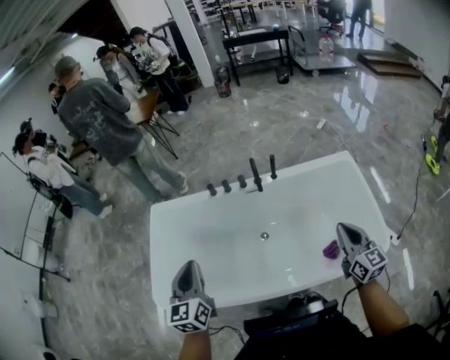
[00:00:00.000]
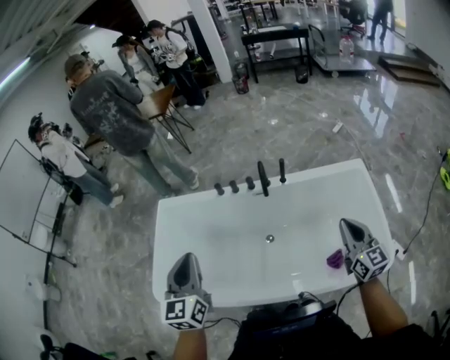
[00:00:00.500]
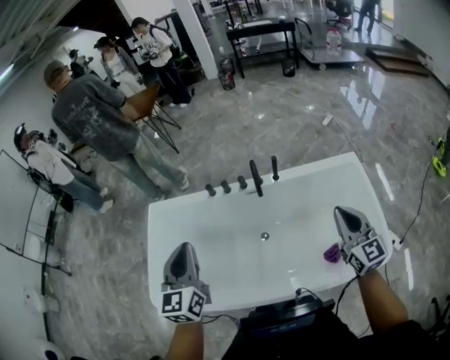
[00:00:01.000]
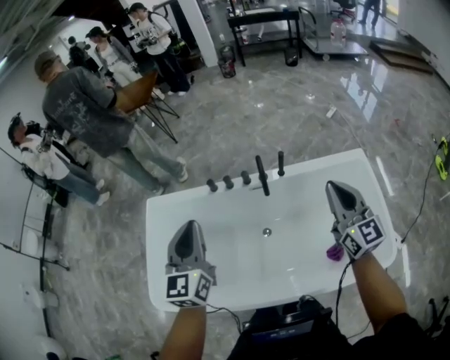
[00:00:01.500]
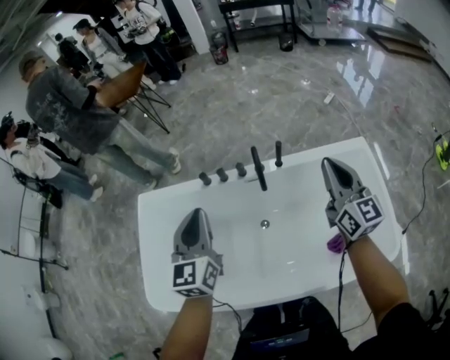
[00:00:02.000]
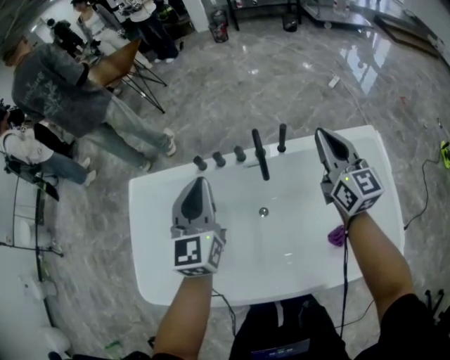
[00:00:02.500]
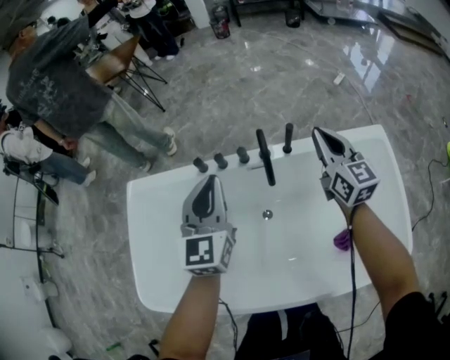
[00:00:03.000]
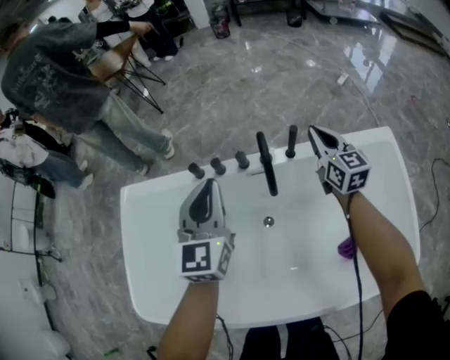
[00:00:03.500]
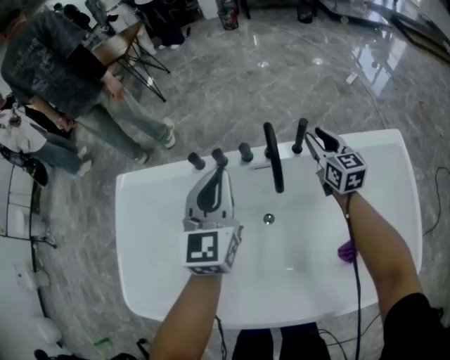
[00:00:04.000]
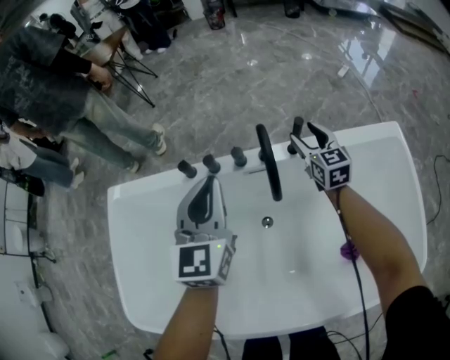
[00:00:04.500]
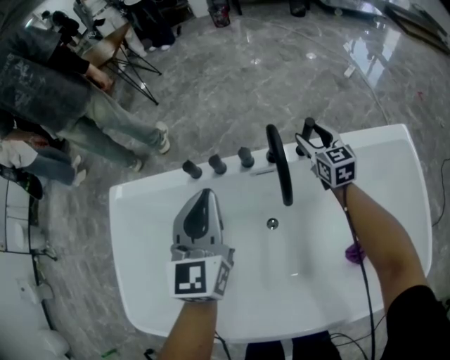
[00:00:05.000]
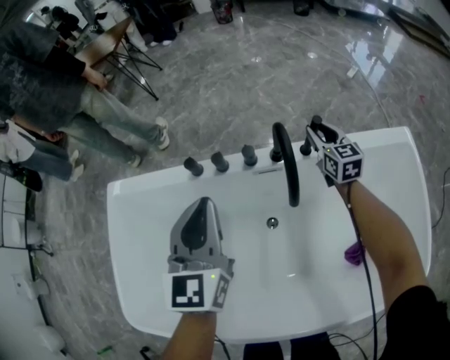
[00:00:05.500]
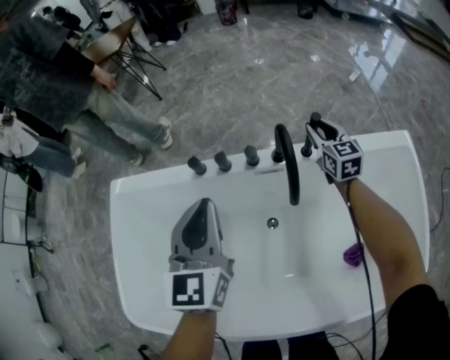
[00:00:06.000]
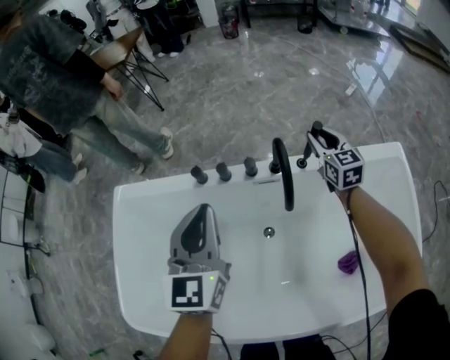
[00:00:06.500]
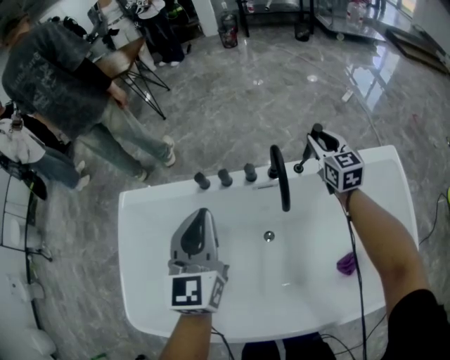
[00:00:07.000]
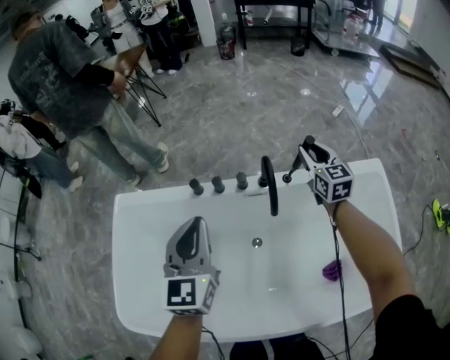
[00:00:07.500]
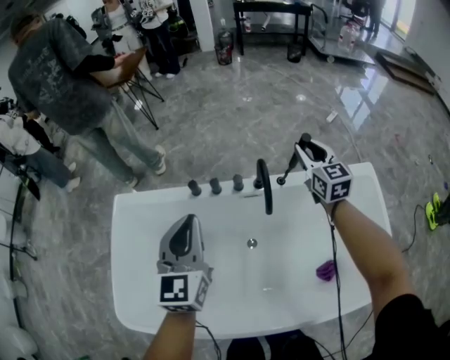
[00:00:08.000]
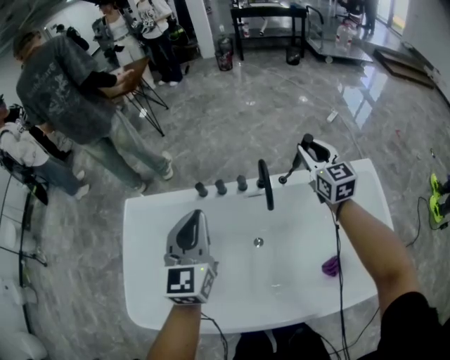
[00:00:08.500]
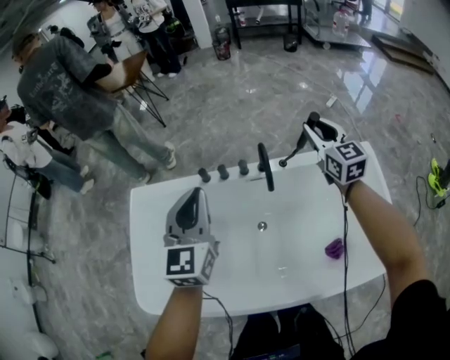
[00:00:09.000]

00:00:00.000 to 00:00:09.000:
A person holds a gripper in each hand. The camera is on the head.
00:00:00.000 to 00:00:02.000: The left gripper goes about 25 cm forward and to the right; the right gripper shifts roughly 25 cm forward.
00:00:02.000 to 00:00:04.500: The right gripper shifts approximately 40 cm downward and forward, rotates about 20 degrees, and opens, while the left gripper is displaced downward and forward by about 25 cm.
00:00:04.500 to 00:00:07.000: The left gripper shifts approximately 10 cm to the left, upward and backward; the right gripper is displaced upward by about 10 cm, and closes its fingers.
00:00:07.000 to 00:00:09.000: The right gripper heads upward and backward, covering approximately 25 cm. The left gripper moves upward and backward, roughly 15 cm.

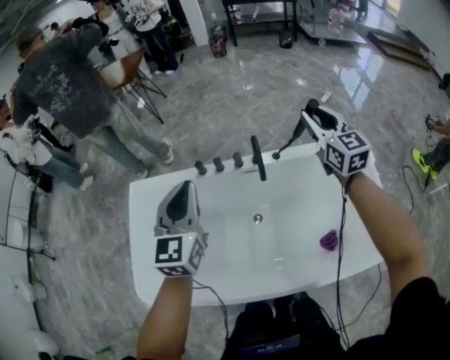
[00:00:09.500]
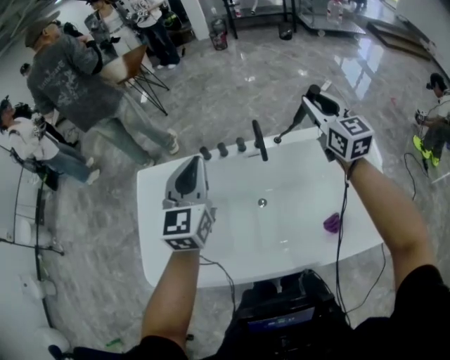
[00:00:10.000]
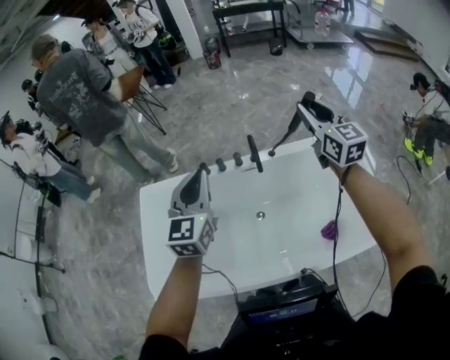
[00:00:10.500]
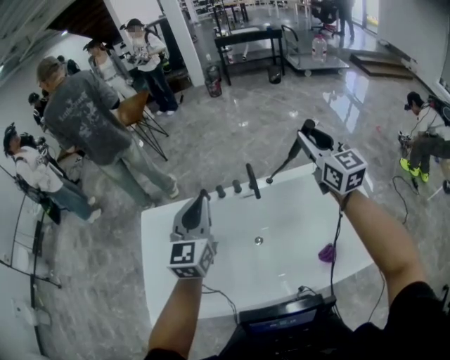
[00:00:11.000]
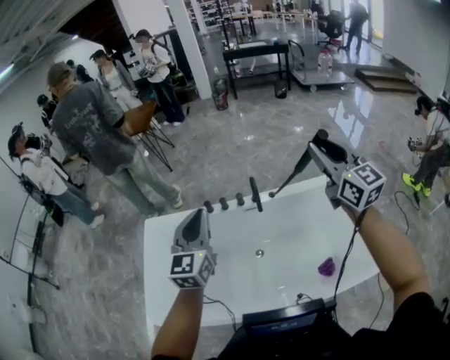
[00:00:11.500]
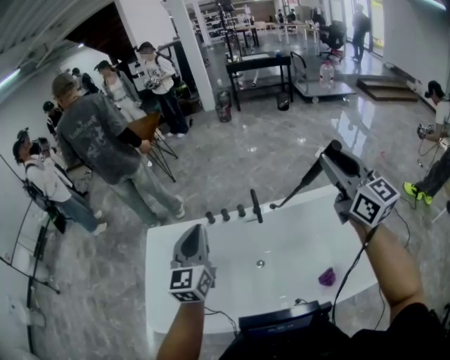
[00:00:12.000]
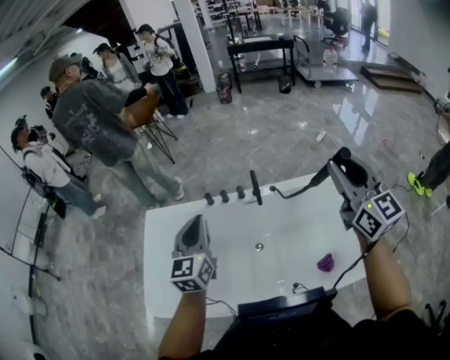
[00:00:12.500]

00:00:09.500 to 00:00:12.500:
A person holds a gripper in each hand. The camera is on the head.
00:00:09.500 to 00:00:11.000: The right gripper travels upward and backward by about 15 cm. Meanwhile the left gripper travels upward and backward by some 10 cm.
00:00:11.000 to 00:00:12.500: The right gripper shifts approximately 15 cm backward and upward; the left gripper ends up approximately 5 cm from where it was.

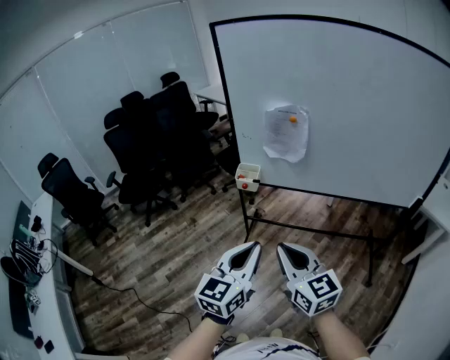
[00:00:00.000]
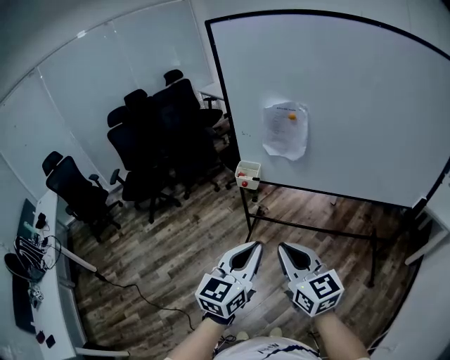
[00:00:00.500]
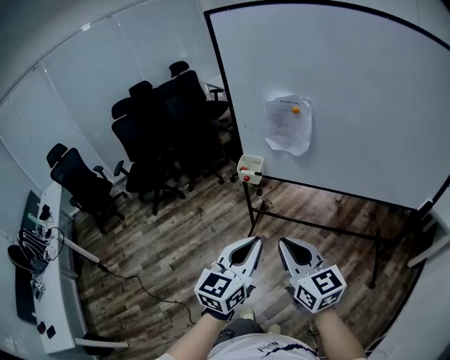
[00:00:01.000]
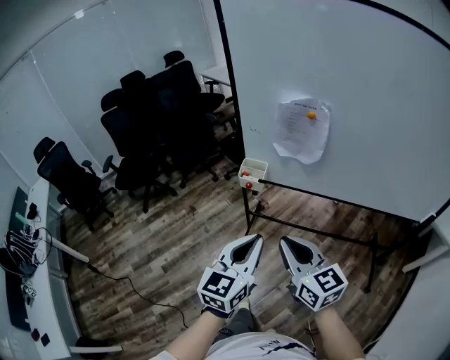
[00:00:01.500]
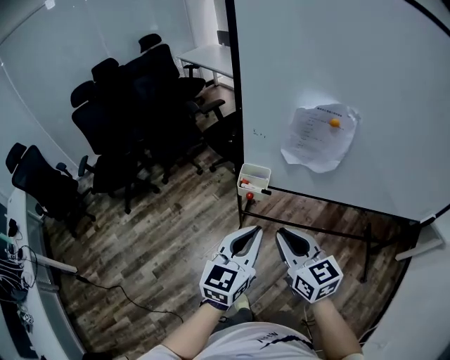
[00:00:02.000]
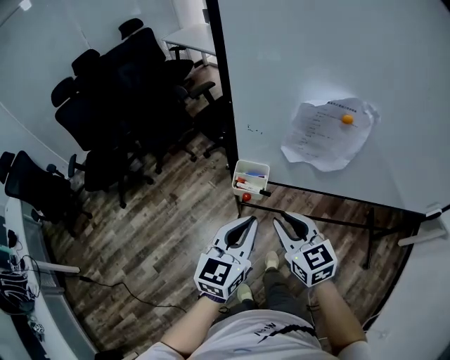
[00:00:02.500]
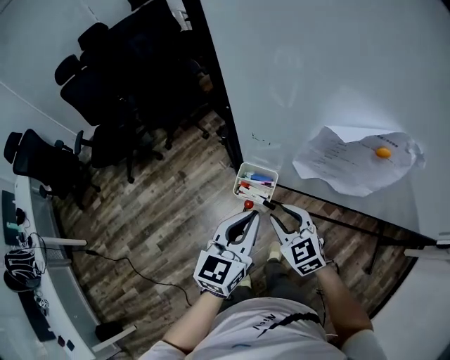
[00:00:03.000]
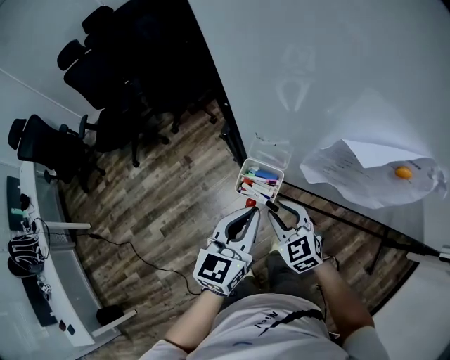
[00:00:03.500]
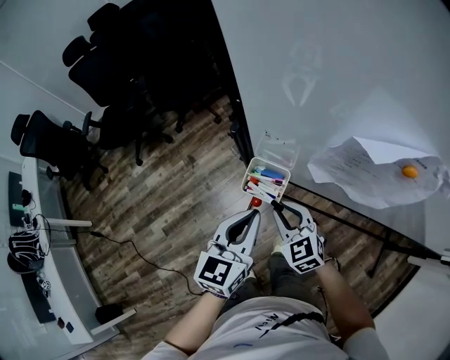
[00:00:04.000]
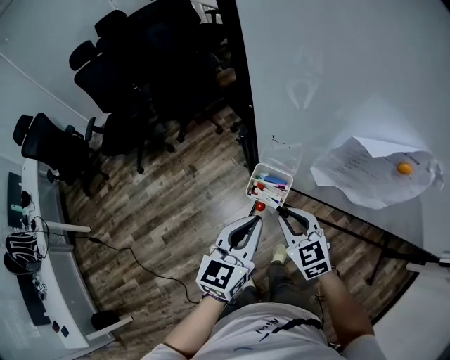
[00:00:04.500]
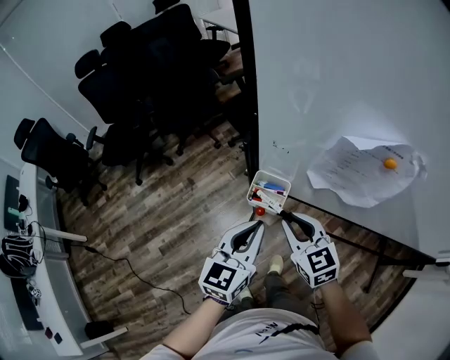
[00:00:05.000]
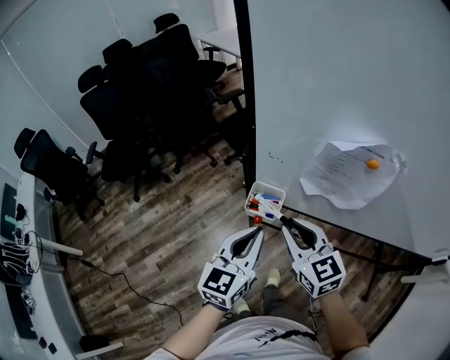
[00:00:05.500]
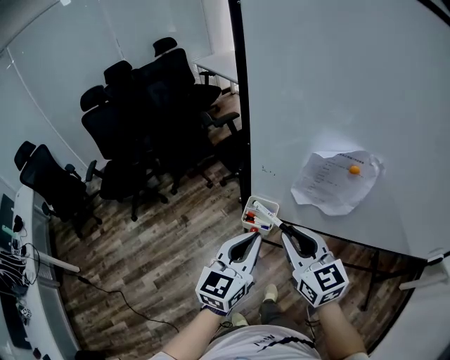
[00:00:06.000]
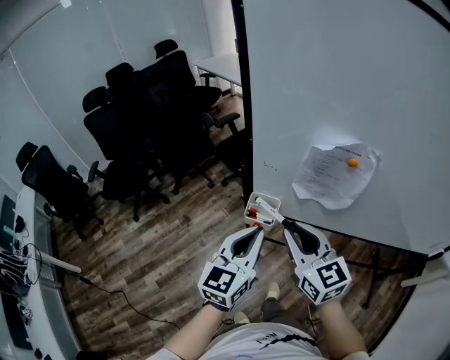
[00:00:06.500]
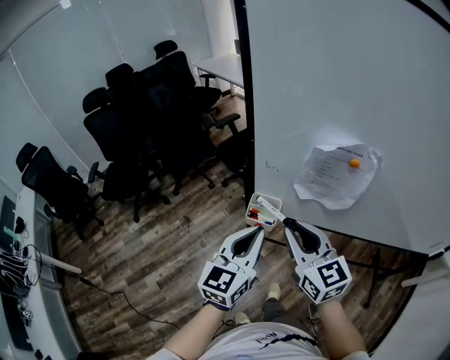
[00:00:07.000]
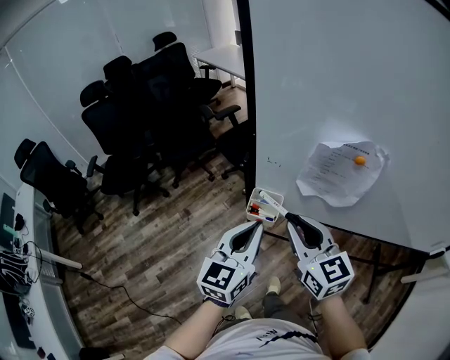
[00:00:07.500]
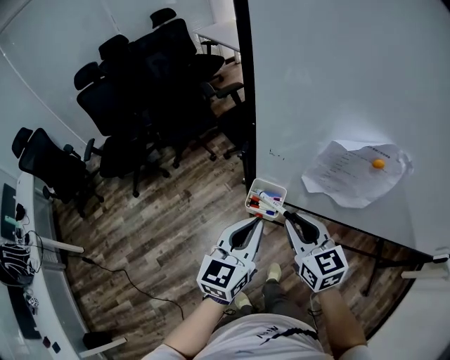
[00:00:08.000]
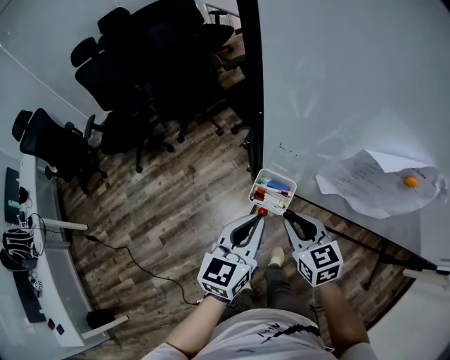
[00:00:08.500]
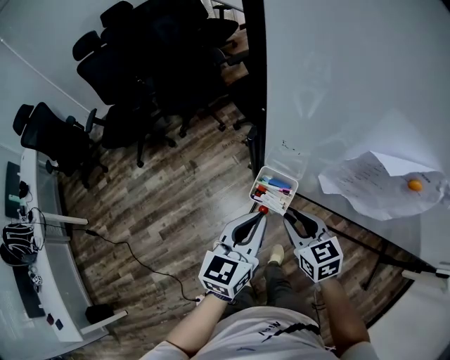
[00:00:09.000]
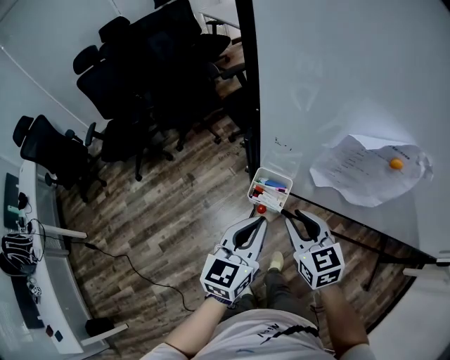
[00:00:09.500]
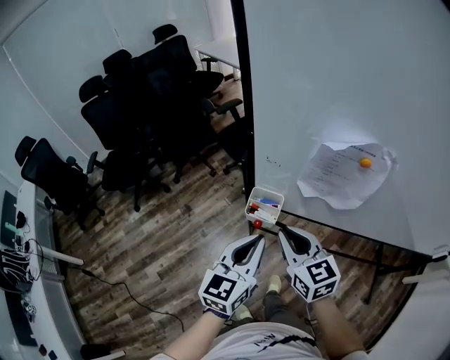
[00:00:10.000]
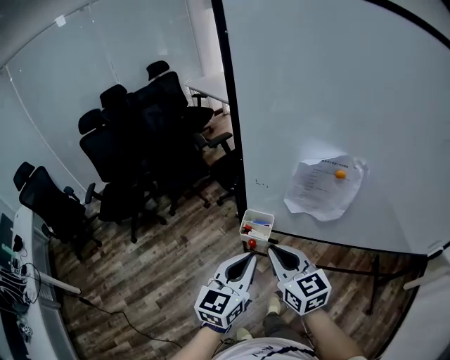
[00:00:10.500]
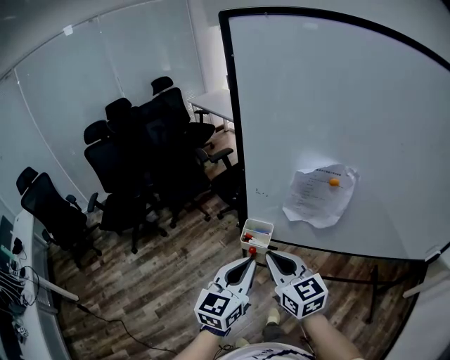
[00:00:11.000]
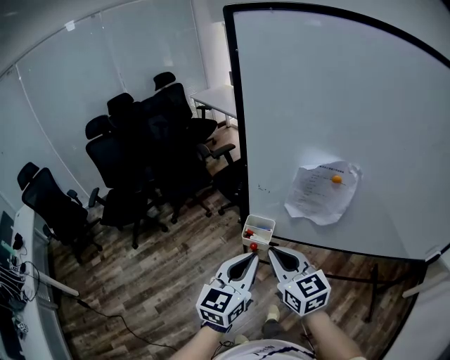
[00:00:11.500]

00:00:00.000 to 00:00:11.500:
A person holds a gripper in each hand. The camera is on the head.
00:00:00.000 to 00:00:02.000: The two grippers go about 25 cm forward.
00:00:02.000 to 00:00:04.000: Both grippers move forward and downward, approximately 25 cm. The right gripper turns by some 30 degrees.
00:00:04.000 to 00:00:06.000: The left gripper is displaced upward and backward by roughly 15 cm. Meanwhile the right gripper moves upward, approximately 25 cm, and rotates about 30 degrees.
00:00:06.000 to 00:00:07.500: The grippers make only small movements.
00:00:07.500 to 00:00:09.500: The right gripper shifts about 15 cm downward. Meanwhile the left gripper goes about 10 cm downward.
00:00:09.500 to 00:00:11.500: Both grippers move upward and backward, some 15 cm. The right gripper closes up.

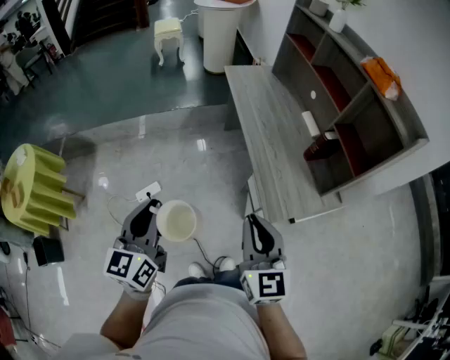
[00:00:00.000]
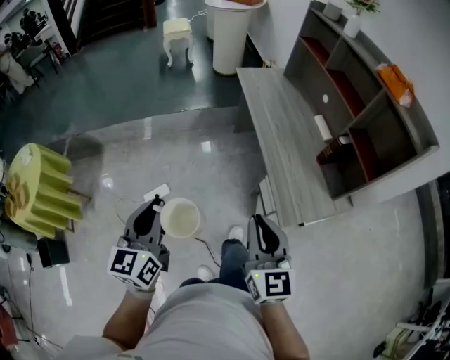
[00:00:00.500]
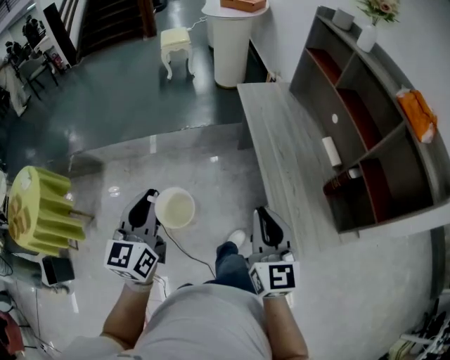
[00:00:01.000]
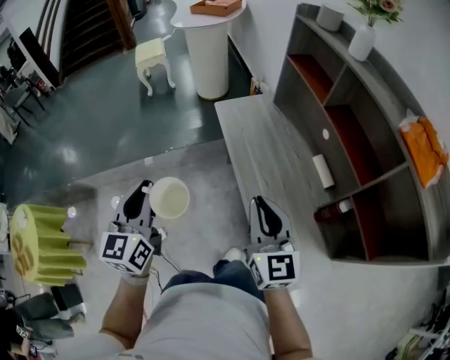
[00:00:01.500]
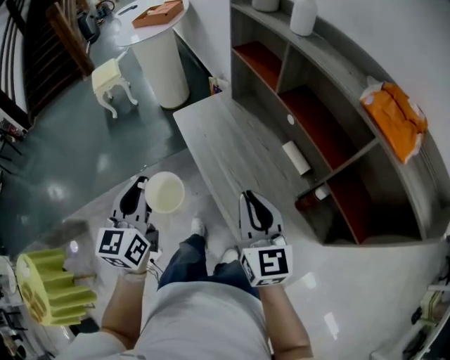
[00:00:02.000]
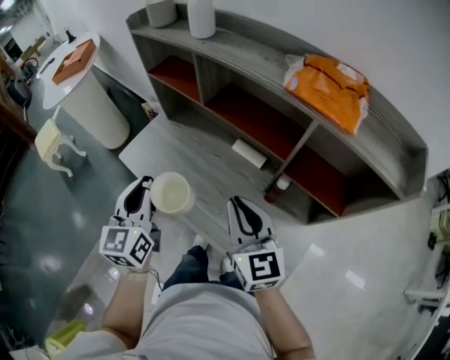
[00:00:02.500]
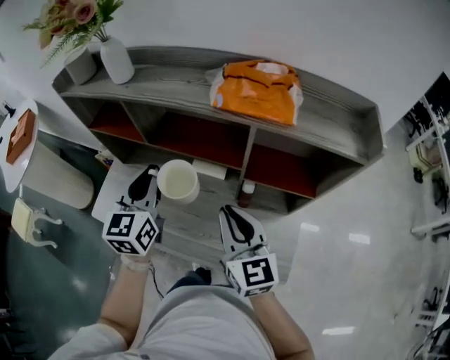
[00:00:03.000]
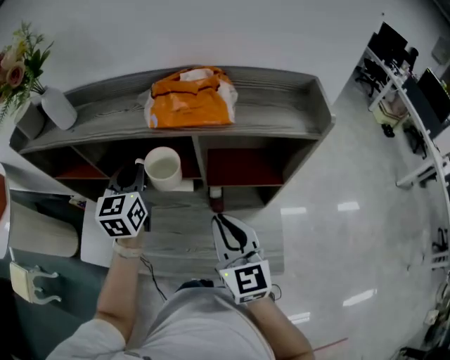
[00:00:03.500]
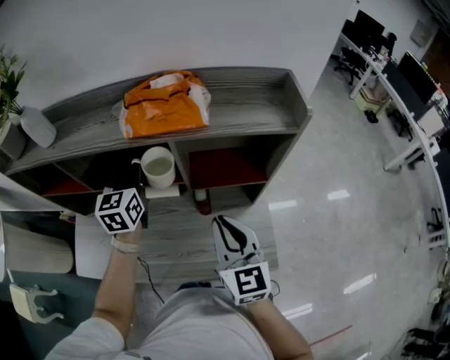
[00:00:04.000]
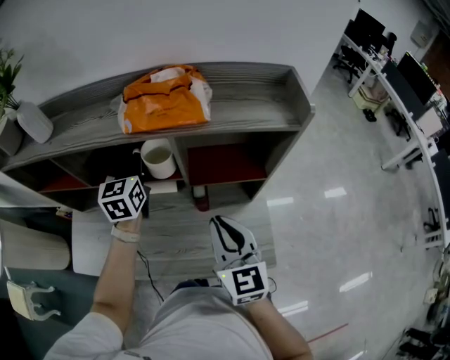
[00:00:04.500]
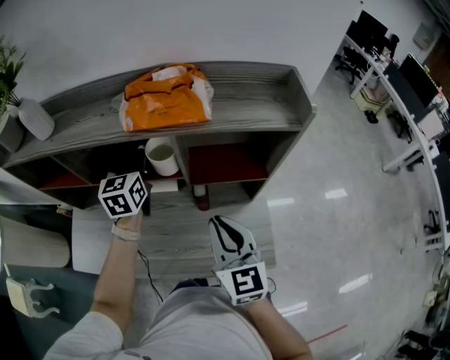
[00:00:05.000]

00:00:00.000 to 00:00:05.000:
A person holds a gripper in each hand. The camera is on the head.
00:00:00.000 to 00:00:02.500: Both grippers are carried approximately 60 cm. The right gripper swivels about 30 degrees; the left gripper changes its angle by some 40 degrees.
00:00:02.500 to 00:00:05.000: The right gripper changes place by some 15 cm, and turns by some 40 degrees. Meanwhile the left gripper shifts by some 35 cm, rotates about 40 degrees, and opens its fingers.
